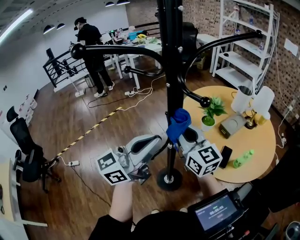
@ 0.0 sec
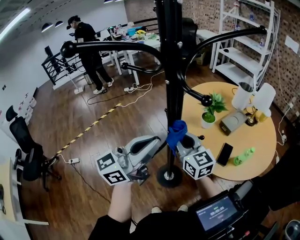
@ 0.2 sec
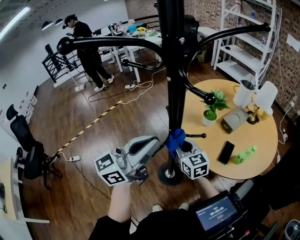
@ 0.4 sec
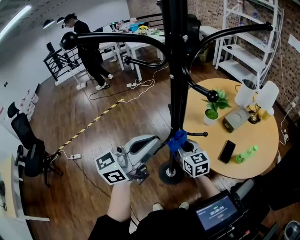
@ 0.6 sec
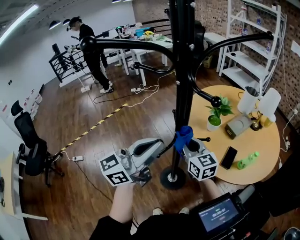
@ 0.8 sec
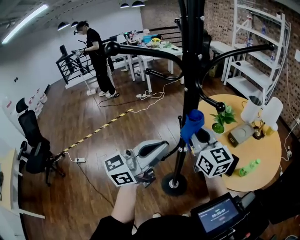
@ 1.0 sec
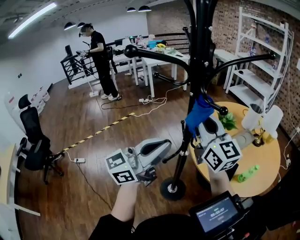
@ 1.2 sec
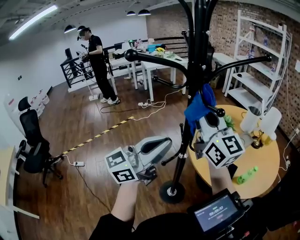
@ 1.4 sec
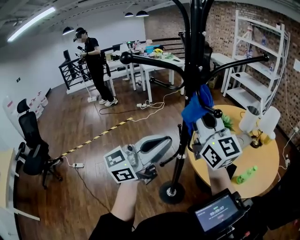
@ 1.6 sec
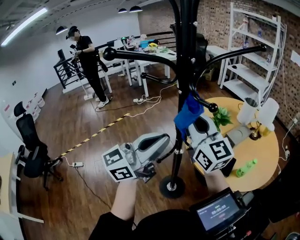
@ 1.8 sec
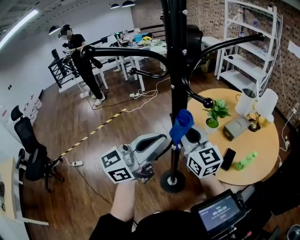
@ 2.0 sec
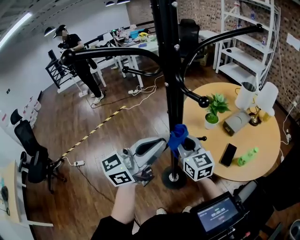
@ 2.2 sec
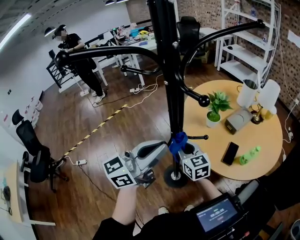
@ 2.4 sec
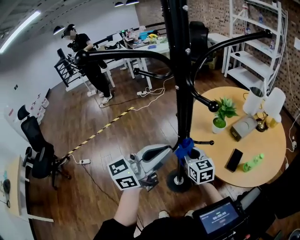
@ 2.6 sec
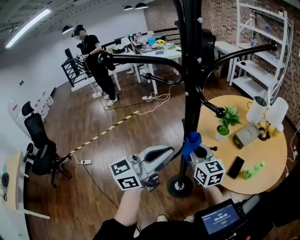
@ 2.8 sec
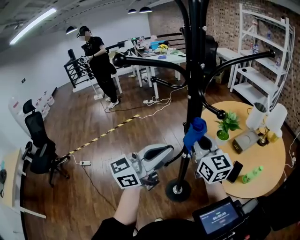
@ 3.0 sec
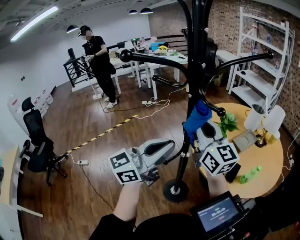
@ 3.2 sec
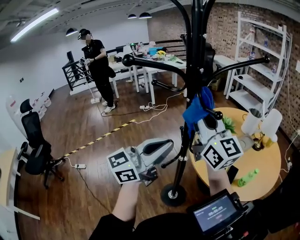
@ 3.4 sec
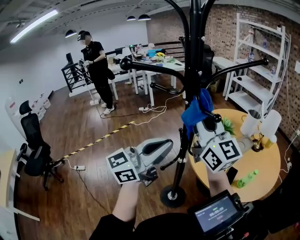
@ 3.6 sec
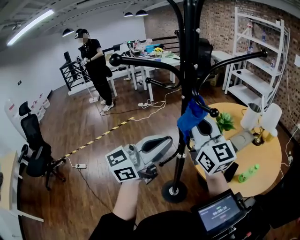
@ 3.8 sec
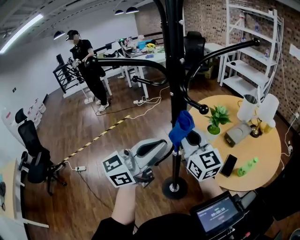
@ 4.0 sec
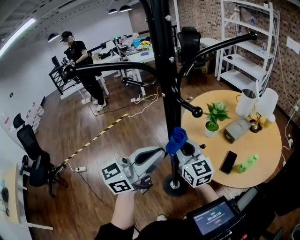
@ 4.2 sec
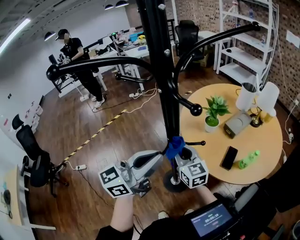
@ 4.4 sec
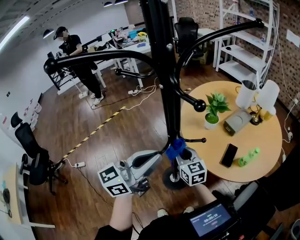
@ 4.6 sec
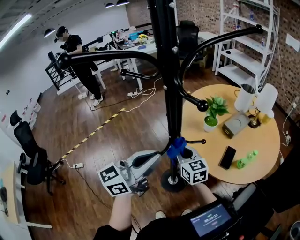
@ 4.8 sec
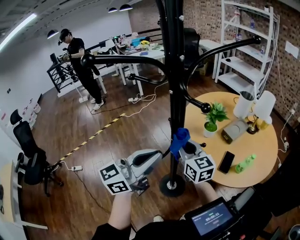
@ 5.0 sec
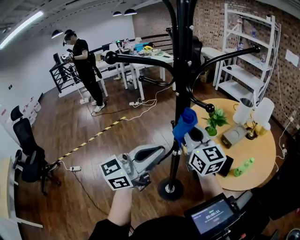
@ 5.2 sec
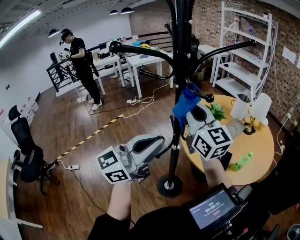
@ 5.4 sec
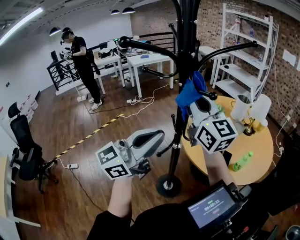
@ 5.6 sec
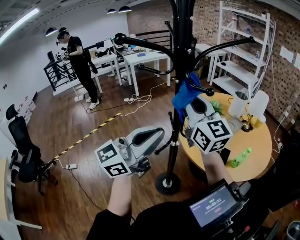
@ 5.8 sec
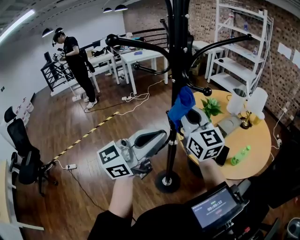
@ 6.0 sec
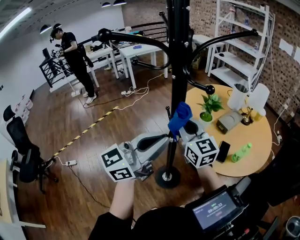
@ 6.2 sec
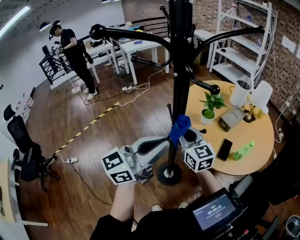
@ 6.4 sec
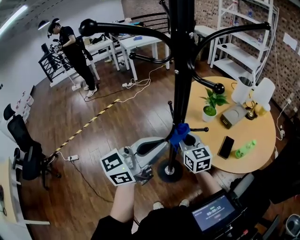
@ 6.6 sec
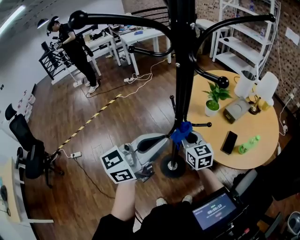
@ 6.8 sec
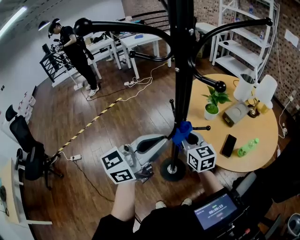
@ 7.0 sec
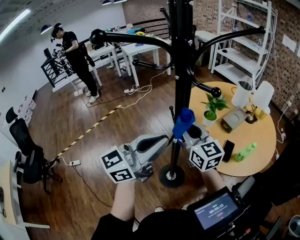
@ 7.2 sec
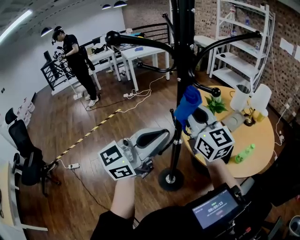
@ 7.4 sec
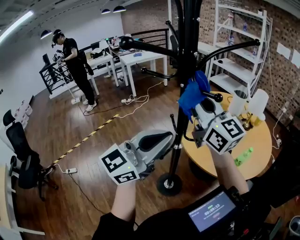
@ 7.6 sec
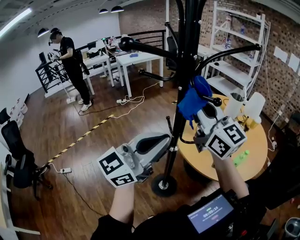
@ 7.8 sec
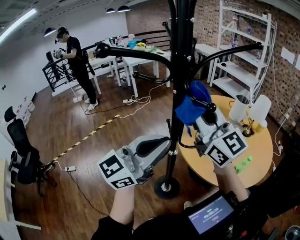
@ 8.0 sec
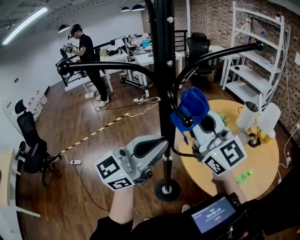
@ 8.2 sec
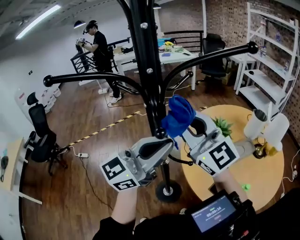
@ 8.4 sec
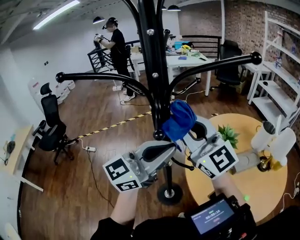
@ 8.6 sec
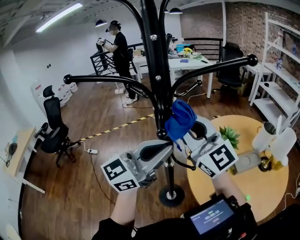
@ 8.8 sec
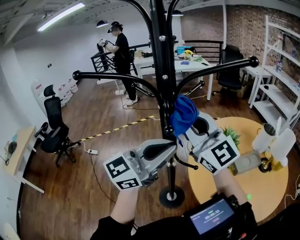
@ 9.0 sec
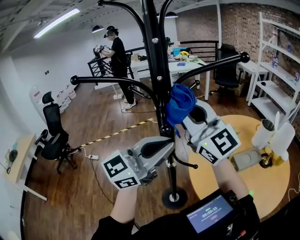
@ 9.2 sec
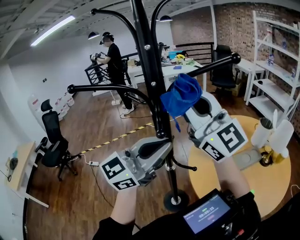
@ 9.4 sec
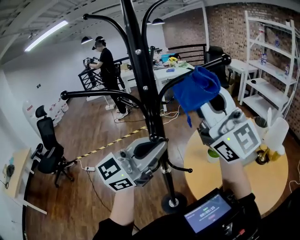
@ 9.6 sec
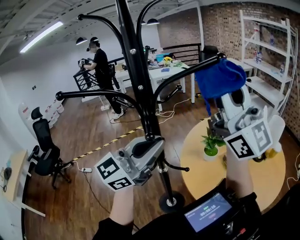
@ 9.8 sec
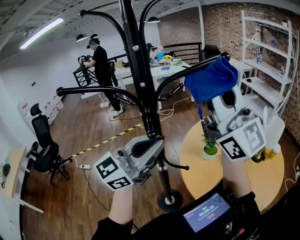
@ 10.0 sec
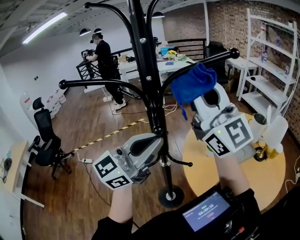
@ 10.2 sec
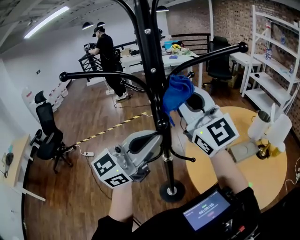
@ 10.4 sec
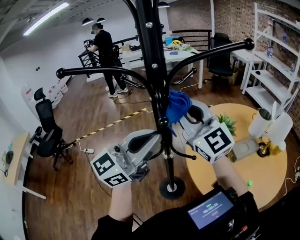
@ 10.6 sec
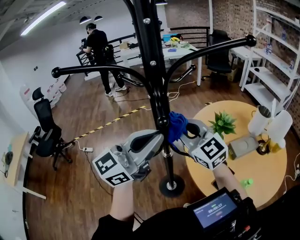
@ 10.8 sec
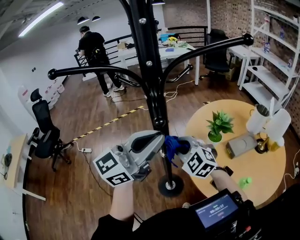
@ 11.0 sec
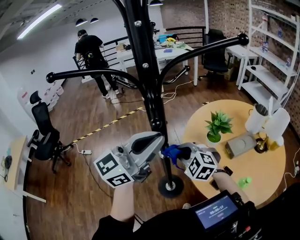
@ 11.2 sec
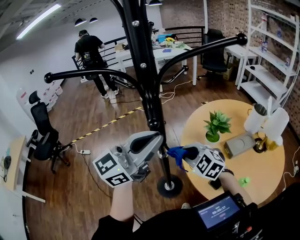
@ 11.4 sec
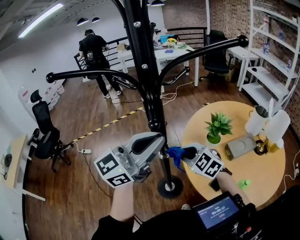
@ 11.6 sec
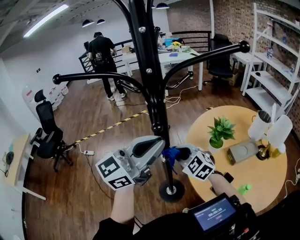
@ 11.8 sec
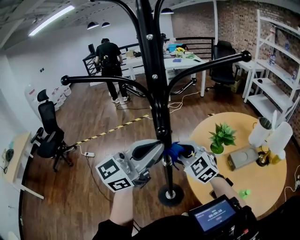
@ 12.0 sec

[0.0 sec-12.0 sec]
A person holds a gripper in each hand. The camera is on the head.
0.0 sec to 1.6 sec: The right gripper moves upward, roughly 15 cm.
1.6 sec to 3.0 sec: The right gripper heads downward, covering about 15 cm.
3.0 sec to 4.4 sec: The right gripper goes approximately 15 cm downward.
4.4 sec to 6.0 sec: The right gripper swings up and down, some 35 cm each way, with 2 reversals; the left gripper is displaced upward by approximately 5 cm.
6.0 sec to 7.6 sec: The left gripper goes downward and returns, about 5 cm each way, while the right gripper goes downward and returns, about 25 cm each way.
7.6 sec to 9.0 sec: The left gripper moves roughly 10 cm, and rotates roughly 20 degrees; the right gripper swivels approximately 30 degrees.
9.0 sec to 10.4 sec: The right gripper goes upward and returns, roughly 15 cm each way.
10.4 sec to 12.0 sec: The right gripper shifts roughly 25 cm downward, and points its fingers some 40 degrees further downward.

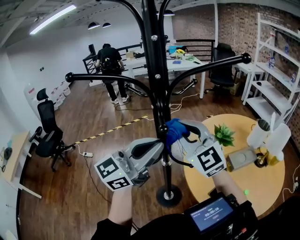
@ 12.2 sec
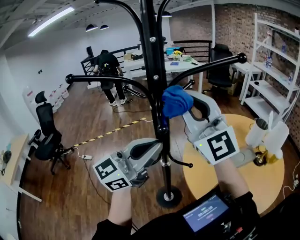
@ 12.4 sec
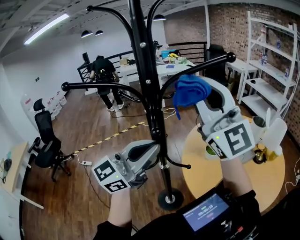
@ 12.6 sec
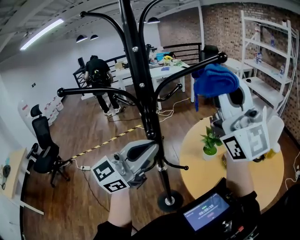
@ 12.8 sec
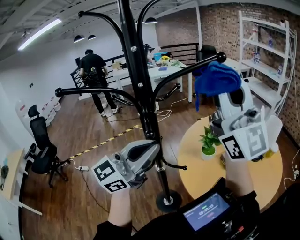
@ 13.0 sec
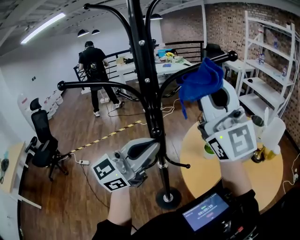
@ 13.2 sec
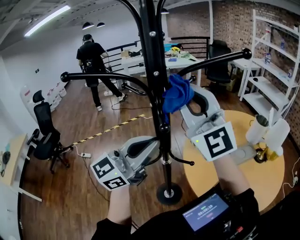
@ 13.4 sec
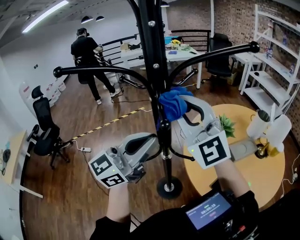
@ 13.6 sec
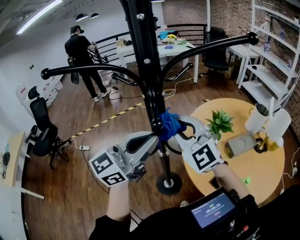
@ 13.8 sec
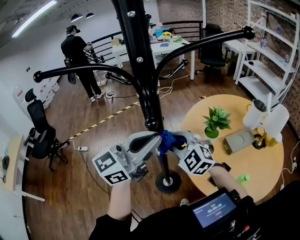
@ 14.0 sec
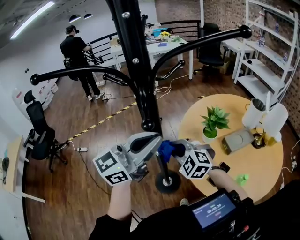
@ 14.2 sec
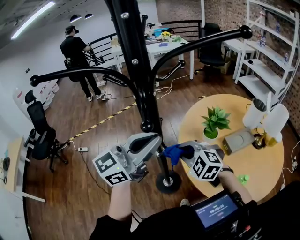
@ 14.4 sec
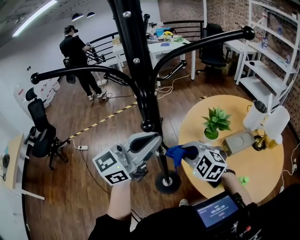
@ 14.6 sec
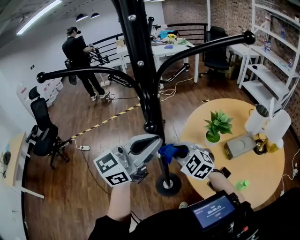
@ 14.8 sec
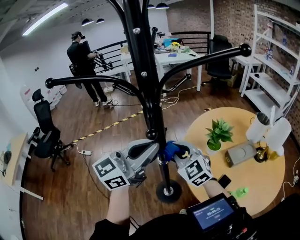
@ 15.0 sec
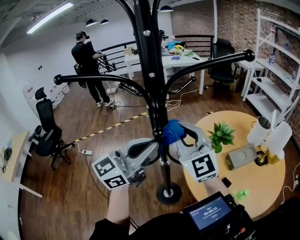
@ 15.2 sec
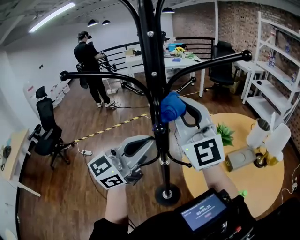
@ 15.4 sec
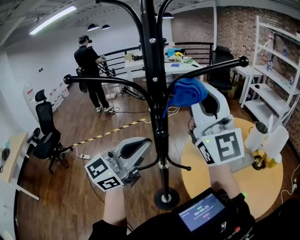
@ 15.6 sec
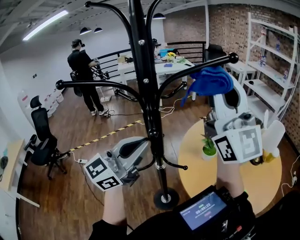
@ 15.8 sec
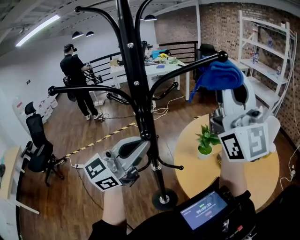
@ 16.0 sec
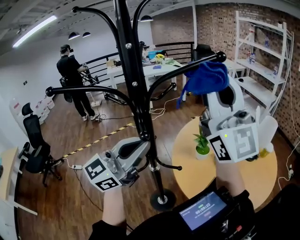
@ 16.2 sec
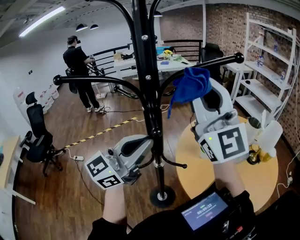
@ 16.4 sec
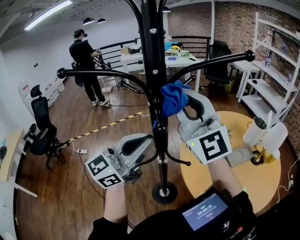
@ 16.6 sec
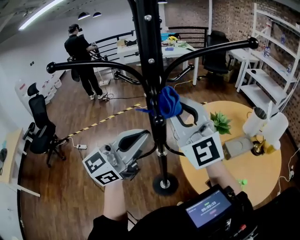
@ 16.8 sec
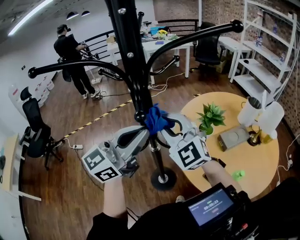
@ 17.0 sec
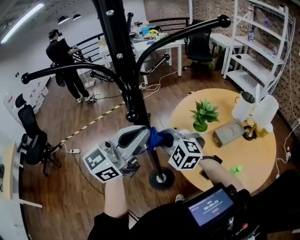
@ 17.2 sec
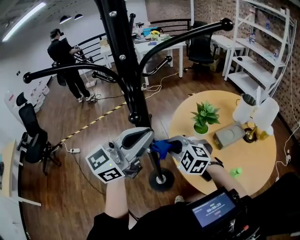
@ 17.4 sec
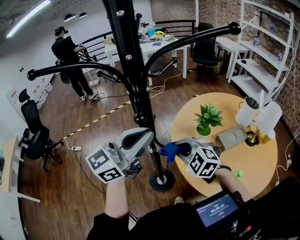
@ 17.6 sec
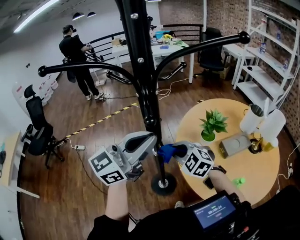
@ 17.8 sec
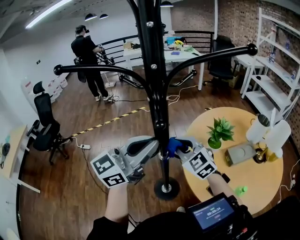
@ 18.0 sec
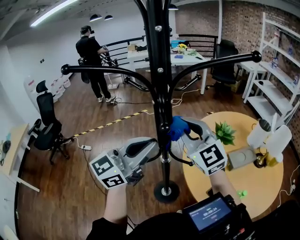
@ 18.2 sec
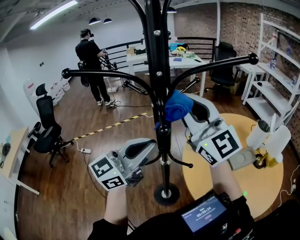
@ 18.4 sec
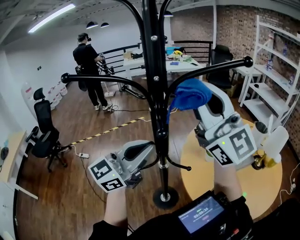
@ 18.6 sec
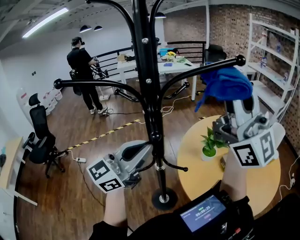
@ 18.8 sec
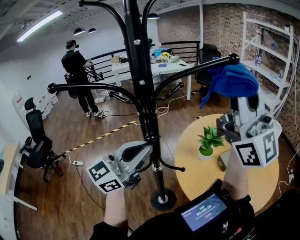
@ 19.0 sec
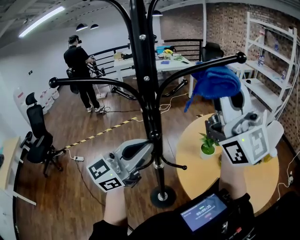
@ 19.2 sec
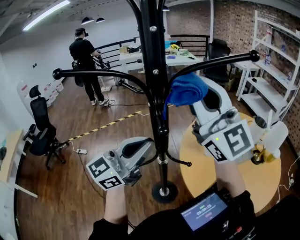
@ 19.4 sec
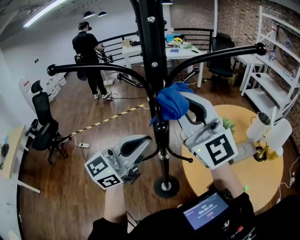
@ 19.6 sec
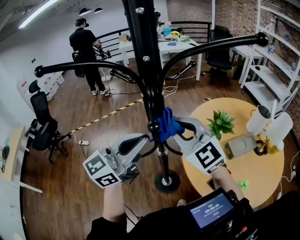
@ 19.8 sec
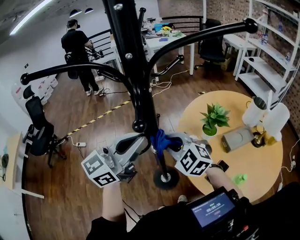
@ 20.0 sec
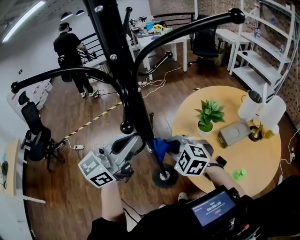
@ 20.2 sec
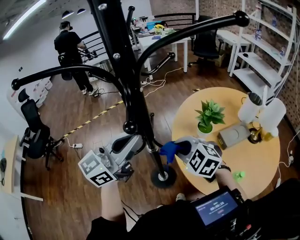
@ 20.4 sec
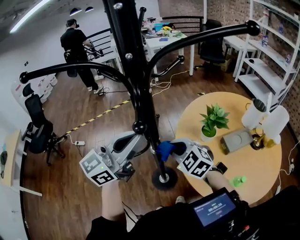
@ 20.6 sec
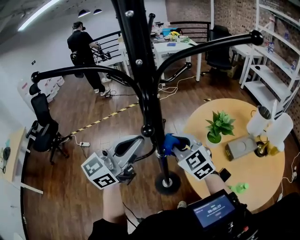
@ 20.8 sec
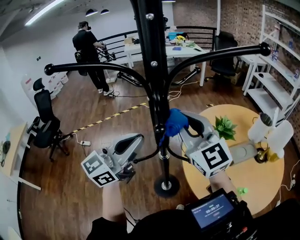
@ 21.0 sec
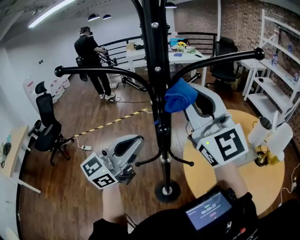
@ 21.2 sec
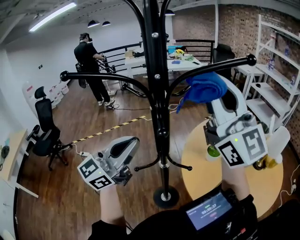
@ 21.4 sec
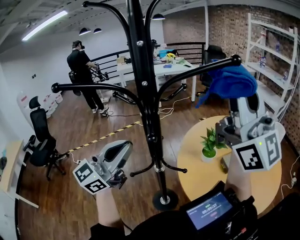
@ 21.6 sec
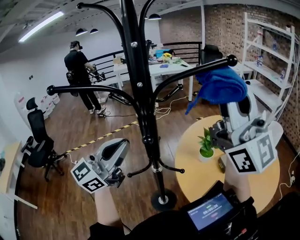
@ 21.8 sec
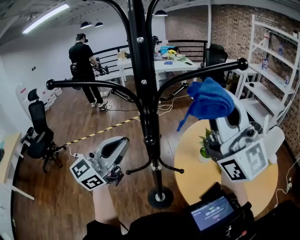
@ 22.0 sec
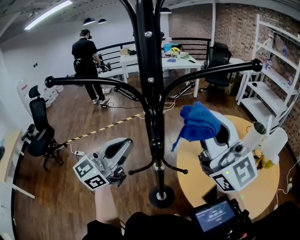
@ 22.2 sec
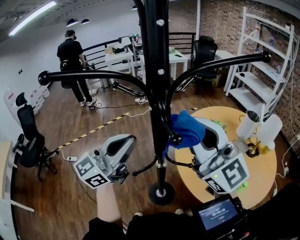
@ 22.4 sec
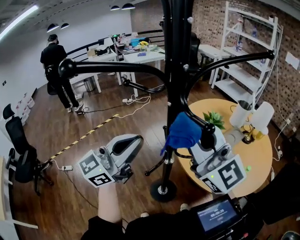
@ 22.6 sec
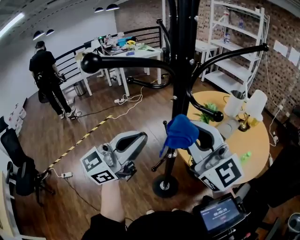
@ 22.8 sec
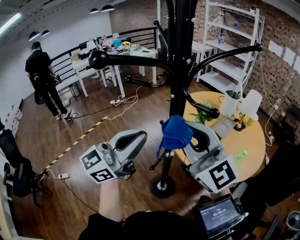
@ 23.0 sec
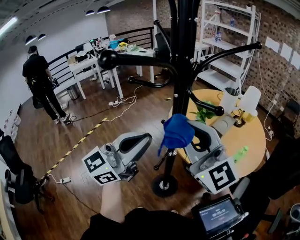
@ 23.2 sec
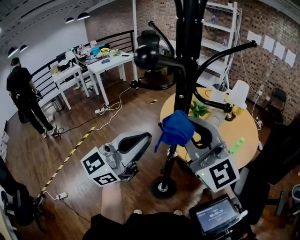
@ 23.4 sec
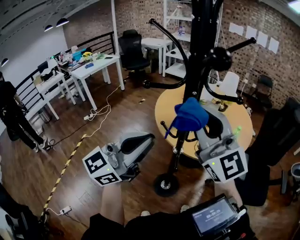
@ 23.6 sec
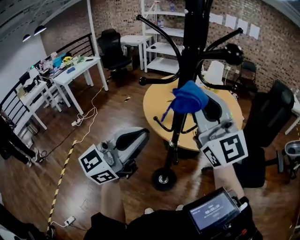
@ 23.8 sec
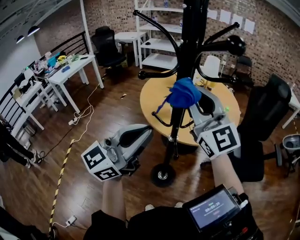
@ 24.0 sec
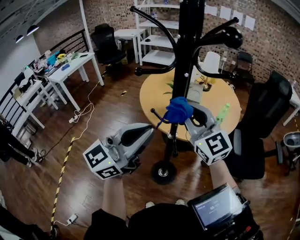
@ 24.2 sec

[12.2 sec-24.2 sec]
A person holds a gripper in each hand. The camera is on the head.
12.2 sec to 13.8 sec: The right gripper goes upward and returns, about 20 cm each way.
13.8 sec to 15.2 sec: The right gripper reaches approximately 20 cm downward, then returns.
15.2 sec to 16.6 sec: The right gripper travels upward by roughly 15 cm.
16.6 sec to 18.2 sec: The right gripper is displaced downward by roughly 15 cm, and rotates roughly 20 degrees.
18.2 sec to 19.8 sec: The right gripper reaches some 25 cm upward, then returns.
19.8 sec to 21.2 sec: The right gripper shifts roughly 20 cm upward, and rotates roughly 30 degrees.
21.2 sec to 22.6 sec: The right gripper travels downward by some 10 cm, and moves some 15 cm to the right and comes back; the left gripper goes approximately 5 cm to the left, and changes its angle by some 20 degrees.
22.6 sec to 24.2 sec: The left gripper changes place by about 5 cm, and rotates some 40 degrees; the right gripper goes some 10 cm downward, and swivels approximately 50 degrees.
